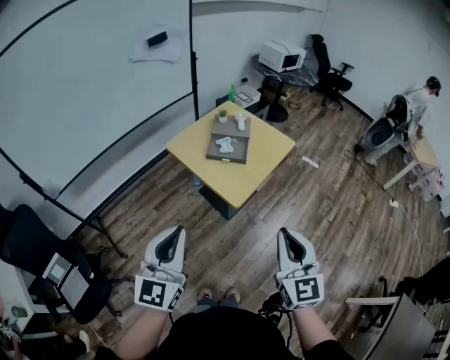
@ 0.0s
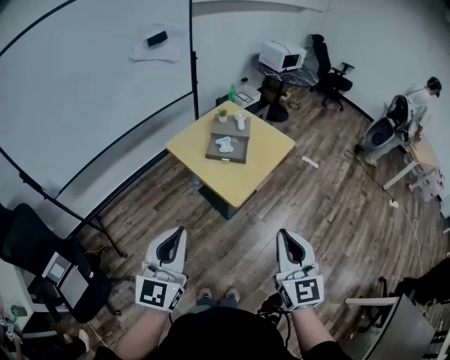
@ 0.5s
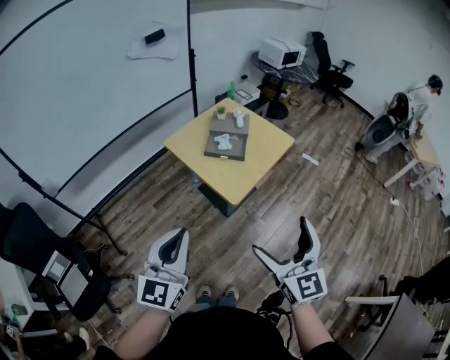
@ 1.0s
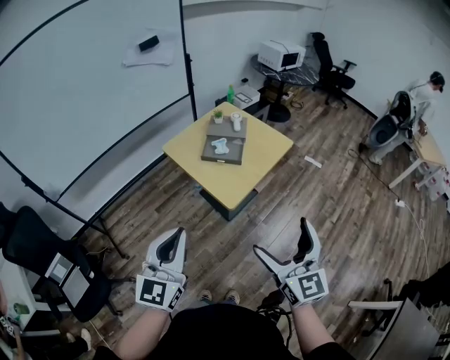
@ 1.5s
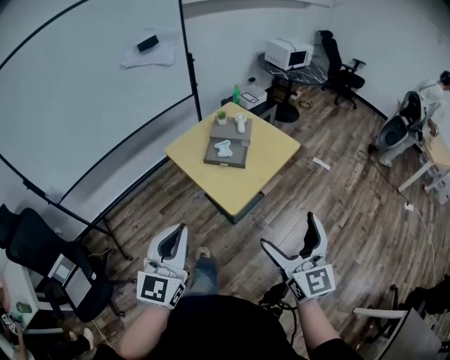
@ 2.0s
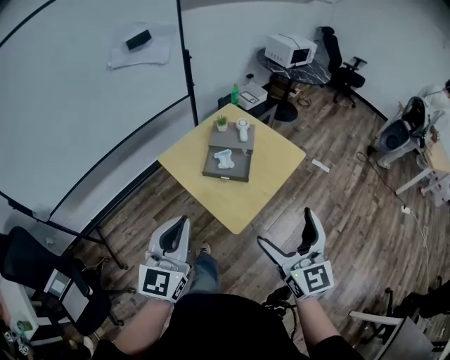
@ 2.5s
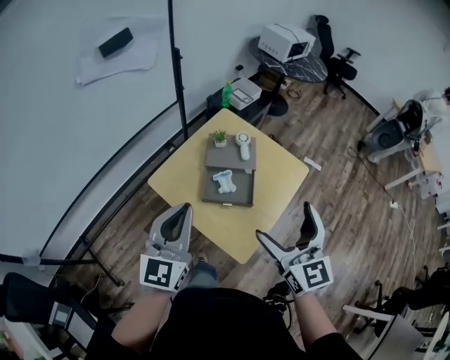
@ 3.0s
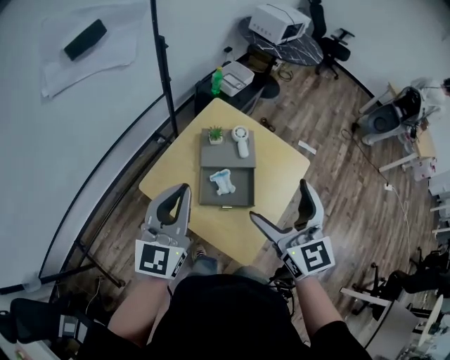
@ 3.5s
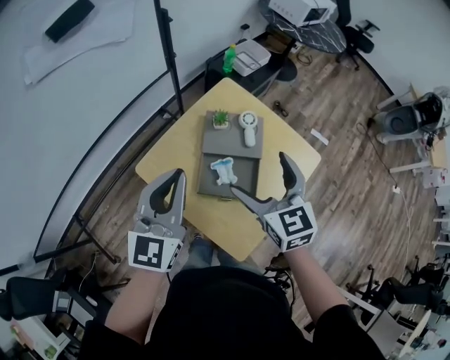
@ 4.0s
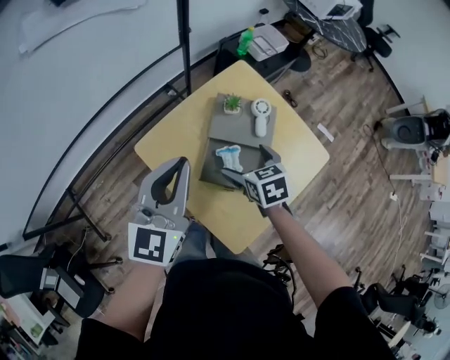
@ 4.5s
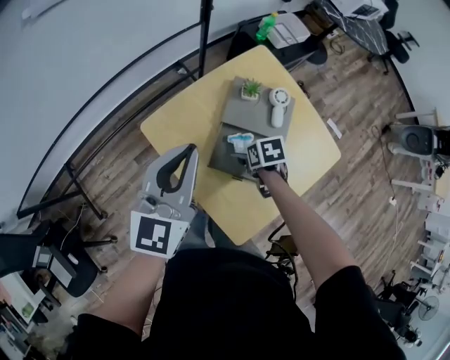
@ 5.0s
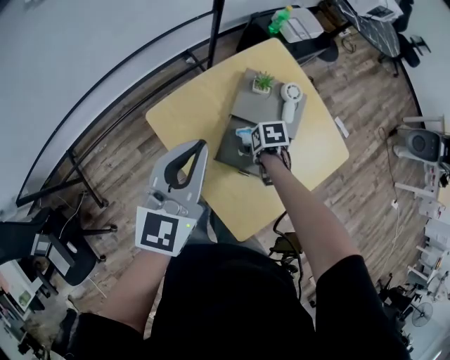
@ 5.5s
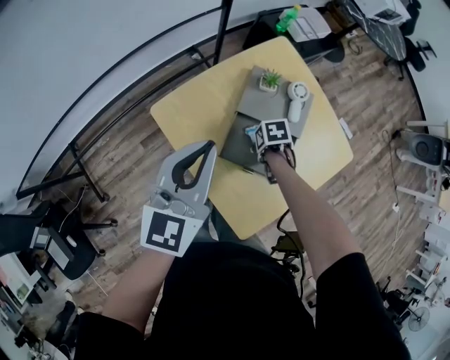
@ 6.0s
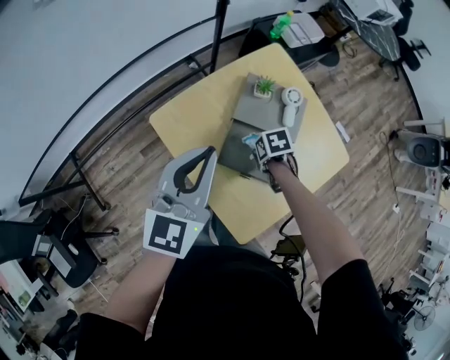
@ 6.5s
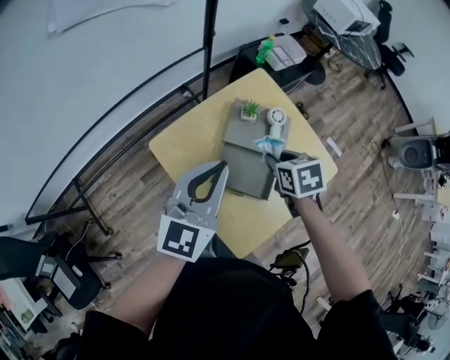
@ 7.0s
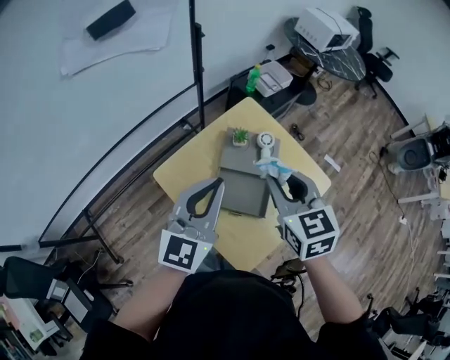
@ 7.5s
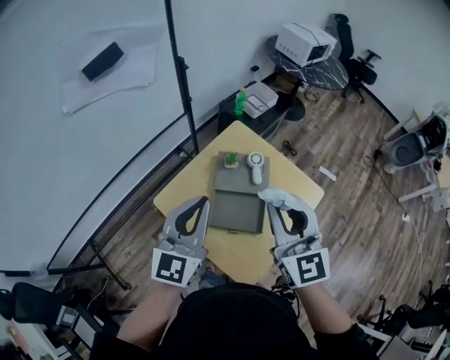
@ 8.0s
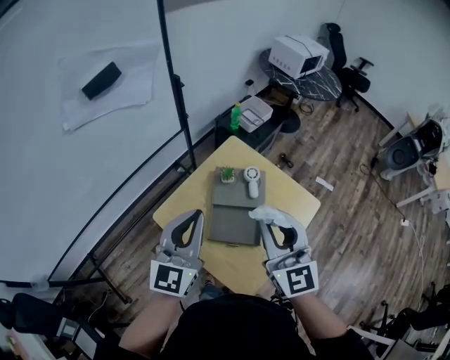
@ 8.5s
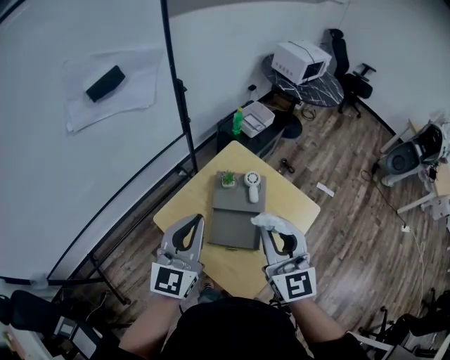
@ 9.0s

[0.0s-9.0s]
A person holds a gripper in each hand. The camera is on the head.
0.0s to 2.0s: The left gripper heads to the right and forward, covering roughly 10 cm, while the right gripper moves forward and to the right, approximately 10 cm, and opens up.
2.0s to 4.5s: Both grippers are carried forward, about 60 cm. The right gripper goes some 25 cm downward, and points its fingers some 50 degrees further downward.
4.5s to 7.0s: The right gripper reaches approximately 20 cm downward, then returns, and closes its fingers.
7.0s to 9.0s: The left gripper is displaced upward by approximately 10 cm, while the right gripper is displaced upward and backward by roughly 25 cm, and tips its fingers upward by roughly 60 degrees.

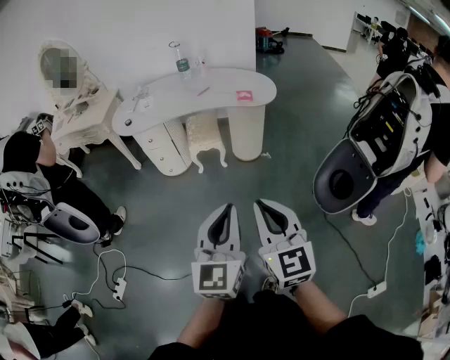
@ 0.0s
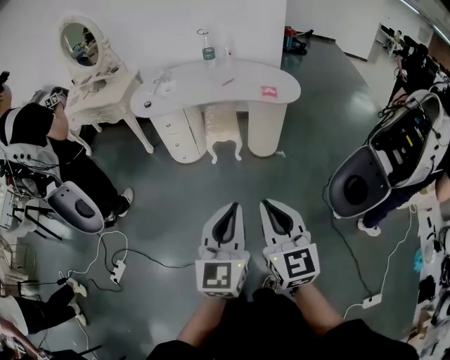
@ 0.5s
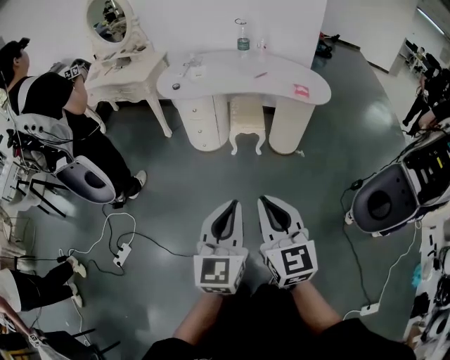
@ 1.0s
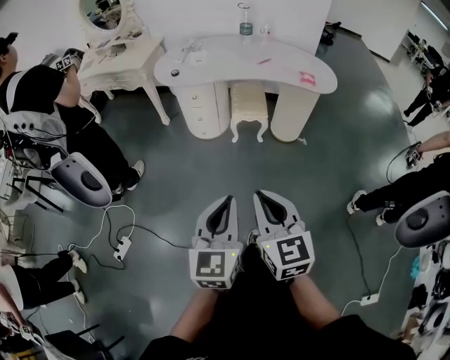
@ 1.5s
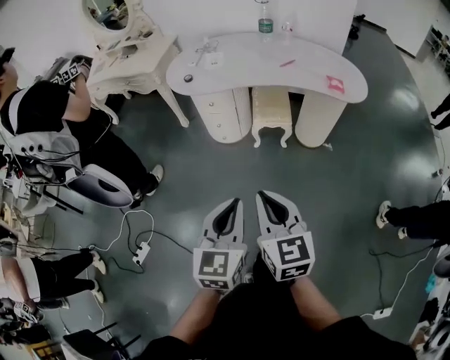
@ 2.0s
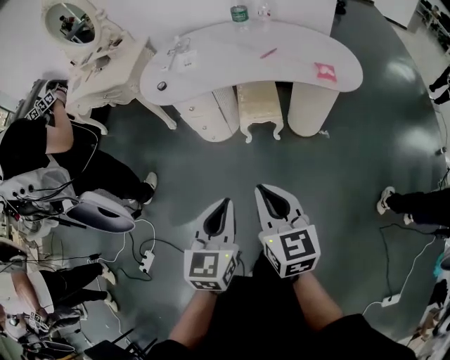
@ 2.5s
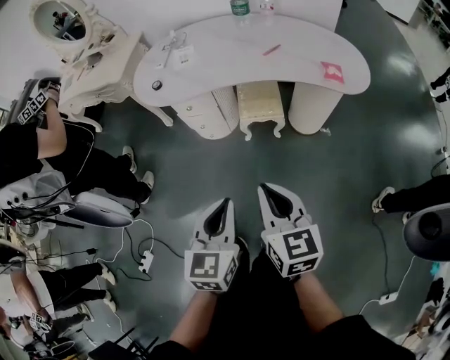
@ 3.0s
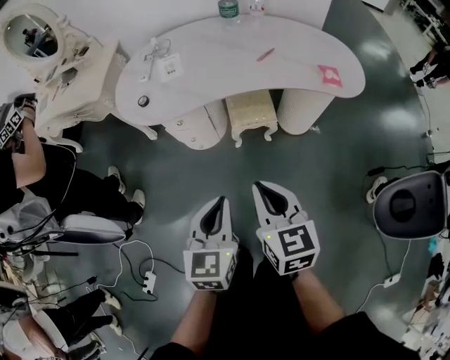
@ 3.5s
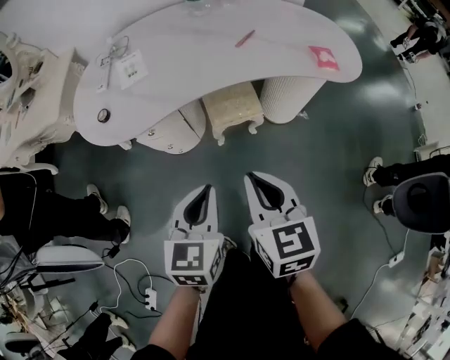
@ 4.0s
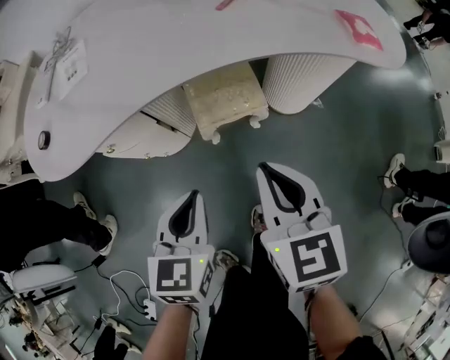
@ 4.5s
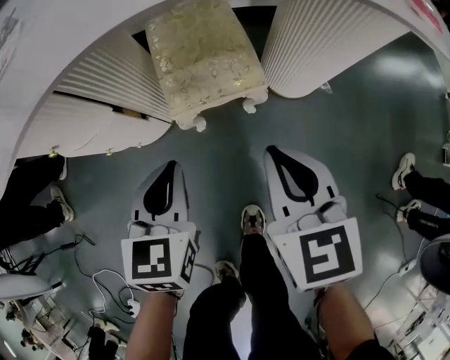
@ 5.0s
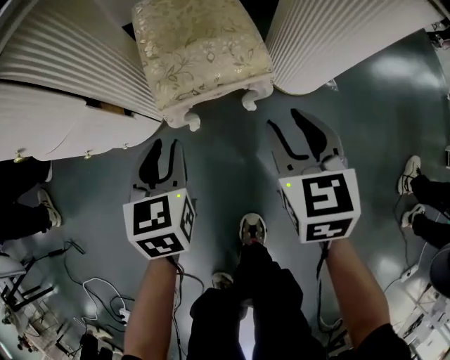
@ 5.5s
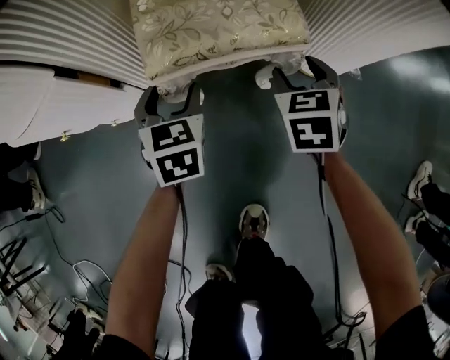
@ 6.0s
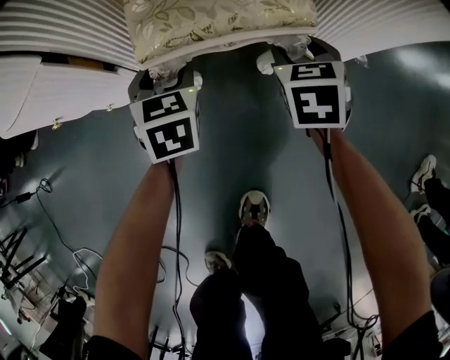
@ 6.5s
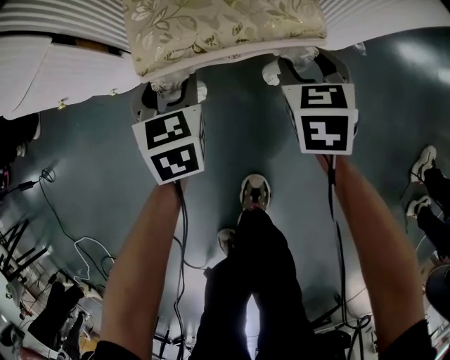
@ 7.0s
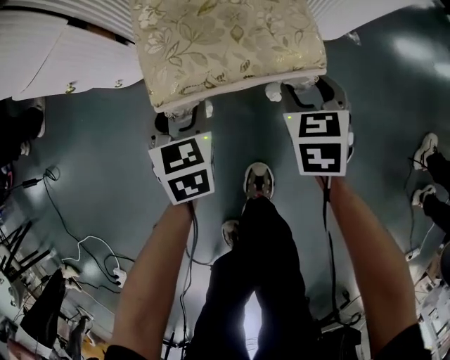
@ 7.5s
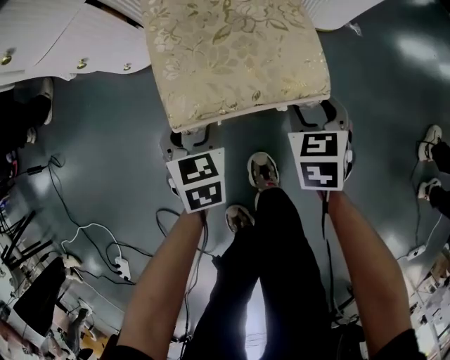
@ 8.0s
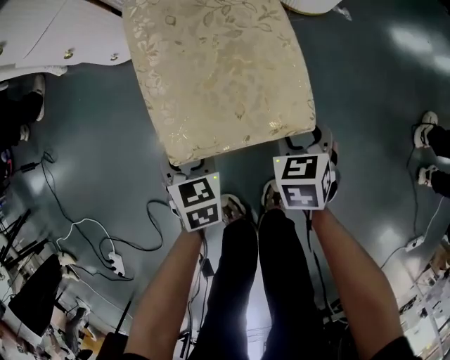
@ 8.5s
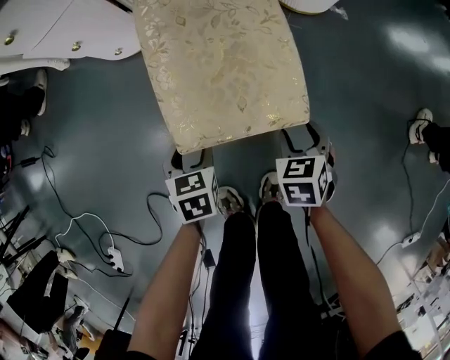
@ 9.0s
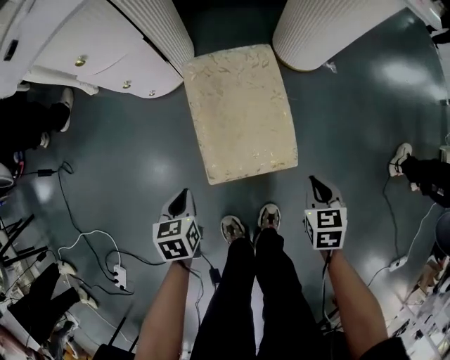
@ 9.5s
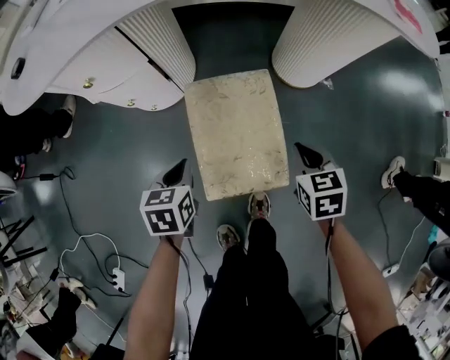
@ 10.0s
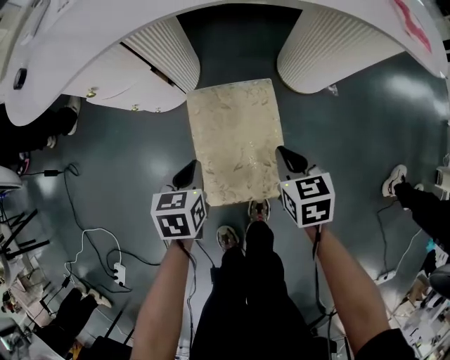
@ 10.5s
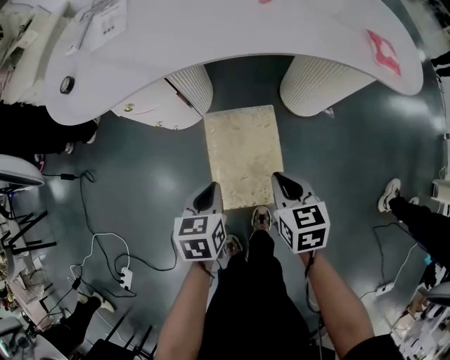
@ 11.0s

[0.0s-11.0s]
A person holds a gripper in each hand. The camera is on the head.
0.0s to 2.0s: The grippers both shift to the left, forward and downward by some 30 cm.
2.0s to 3.5s: Both grippers move forward, about 25 cm.
3.5s to 5.5s: The two grippers go approximately 60 cm downward and forward. The left gripper opens, while the right gripper rotates some 20 degrees, and opens its fingers.
5.5s to 7.5s: The grippers both shift downward and forward by approximately 20 cm. The left gripper opens.
7.5s to 9.0s: The grippers both shift backward by some 15 cm.
9.0s to 11.0s: Both grippers move upward, roughly 30 cm. The left gripper closes; the right gripper changes its angle by approximately 30 degrees, and closes its fingers.

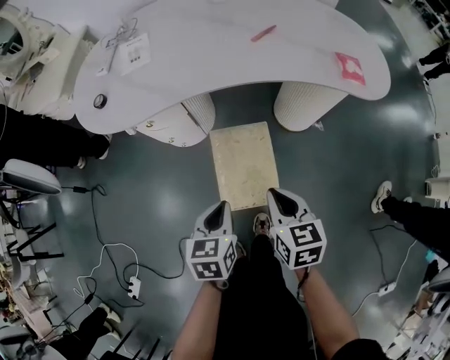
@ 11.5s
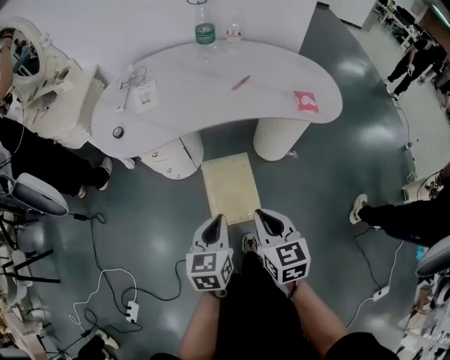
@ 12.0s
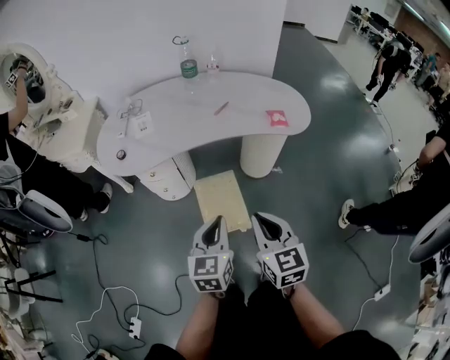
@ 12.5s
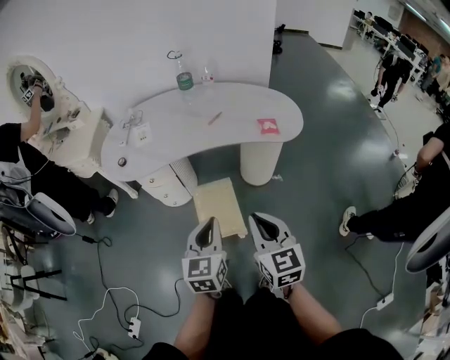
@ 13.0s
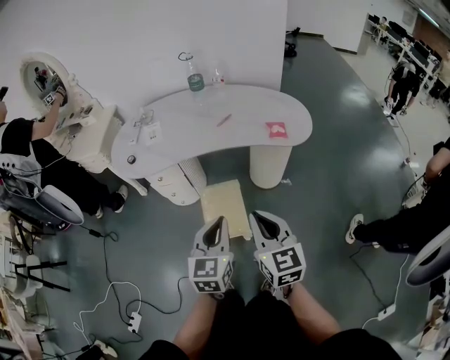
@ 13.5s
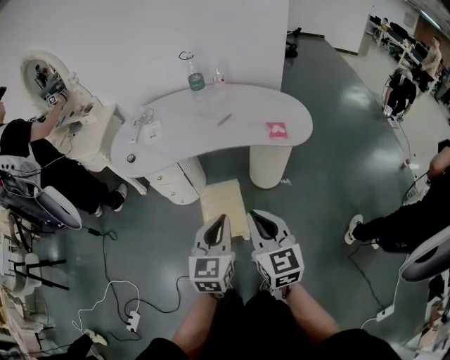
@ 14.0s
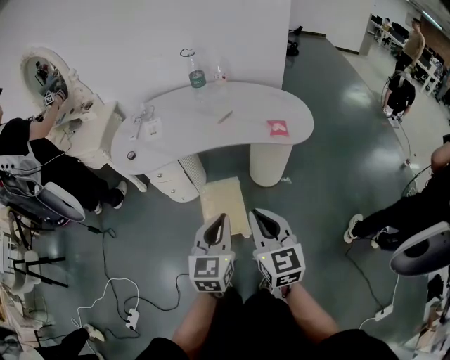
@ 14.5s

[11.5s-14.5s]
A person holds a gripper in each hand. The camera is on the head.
11.5s to 13.0s: The right gripper travels upward and backward by roughly 30 cm, and turns by approximately 30 degrees. Meanwhile the left gripper heads upward, covering approximately 25 cm, and swivels roughly 30 degrees.
13.0s to 14.5s: The grippers move only a little.

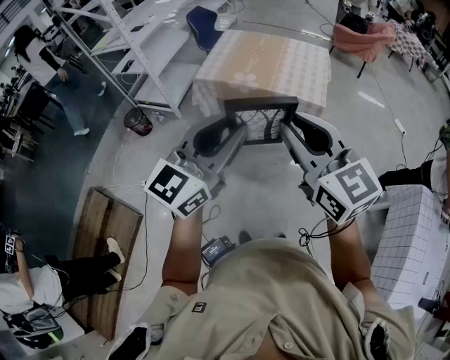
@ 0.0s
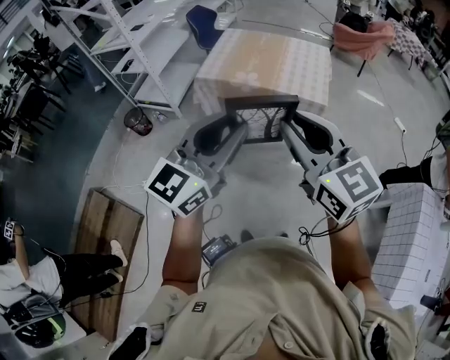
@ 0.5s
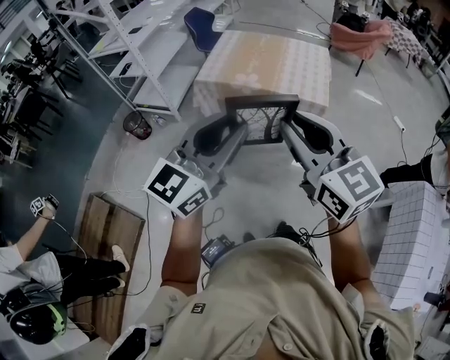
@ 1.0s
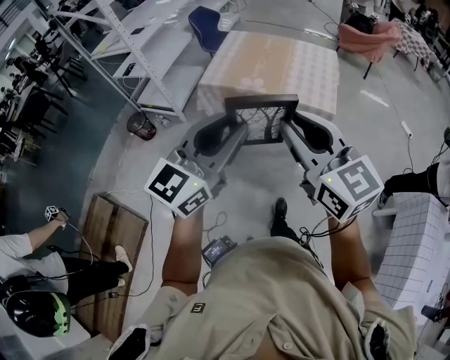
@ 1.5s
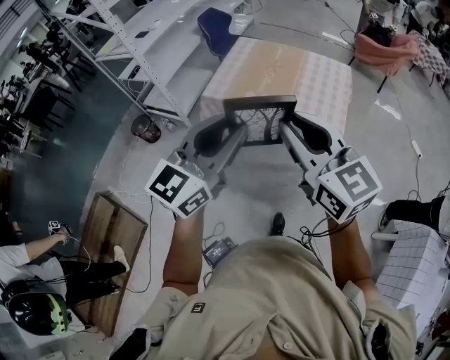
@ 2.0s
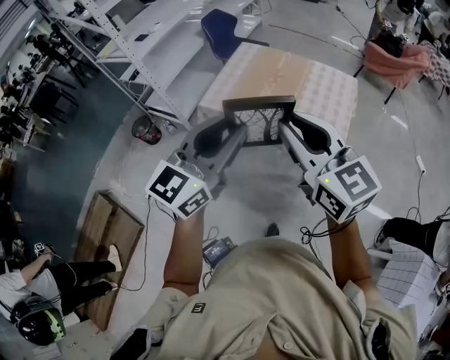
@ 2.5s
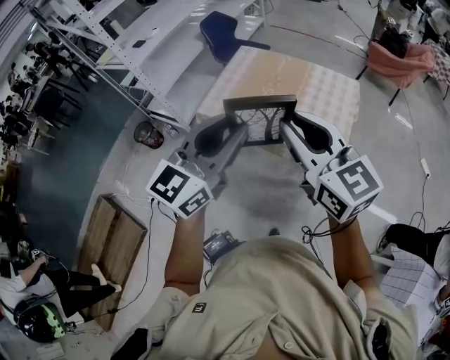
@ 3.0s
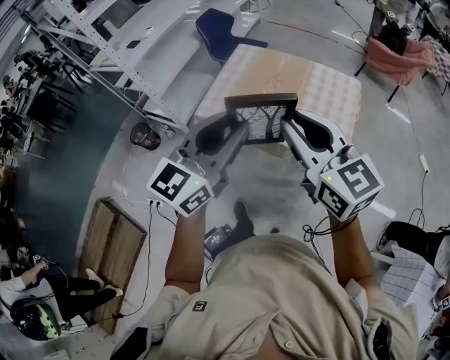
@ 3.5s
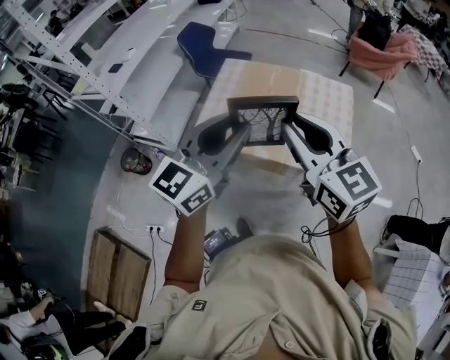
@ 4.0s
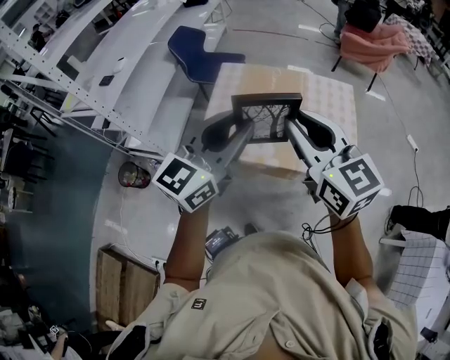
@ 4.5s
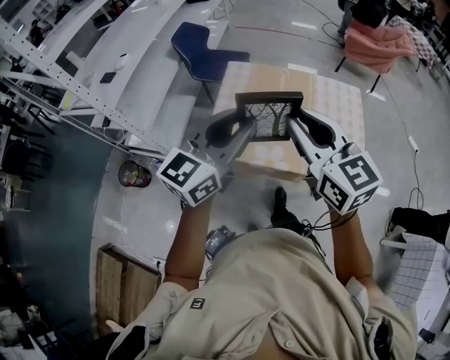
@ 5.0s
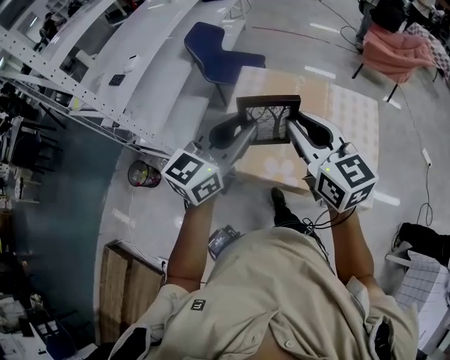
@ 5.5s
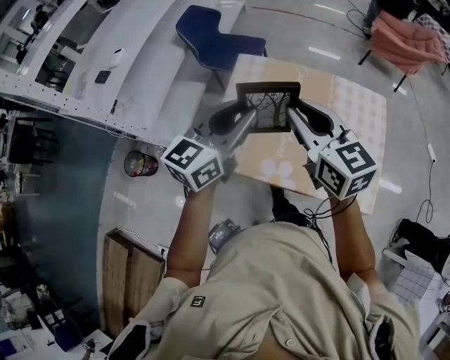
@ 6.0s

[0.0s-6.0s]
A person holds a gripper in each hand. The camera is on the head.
0.0s to 2.0s: The two grippers go about 20 cm forward.
2.0s to 4.0s: Both grippers move forward, some 25 cm.
4.0s to 6.0s: Both grippers move forward, approximately 25 cm.
